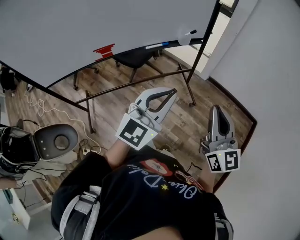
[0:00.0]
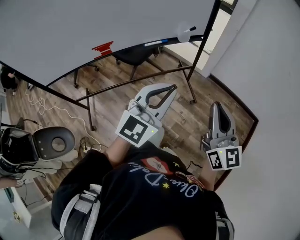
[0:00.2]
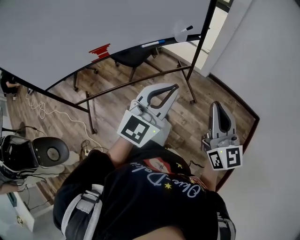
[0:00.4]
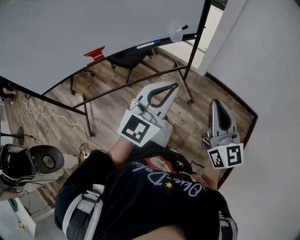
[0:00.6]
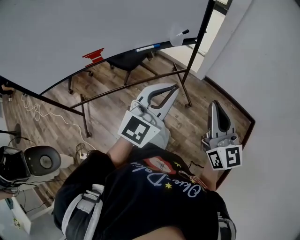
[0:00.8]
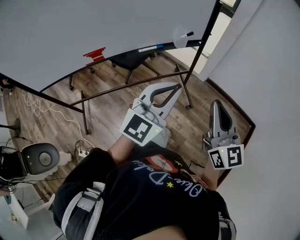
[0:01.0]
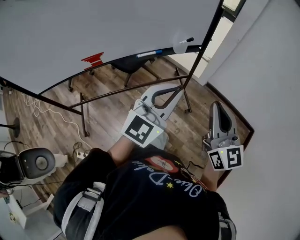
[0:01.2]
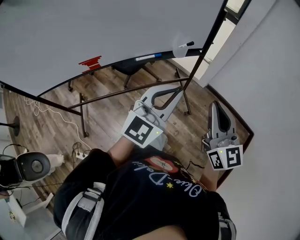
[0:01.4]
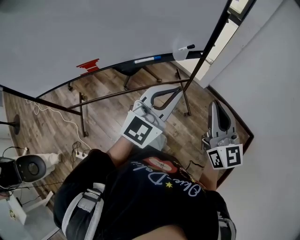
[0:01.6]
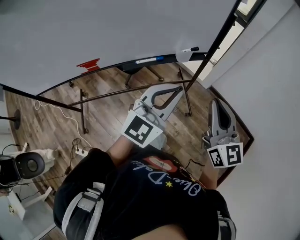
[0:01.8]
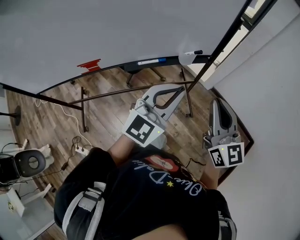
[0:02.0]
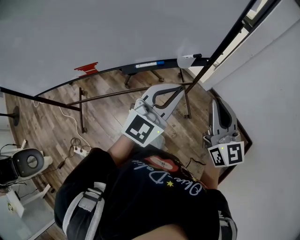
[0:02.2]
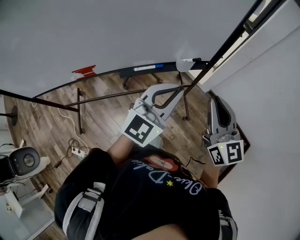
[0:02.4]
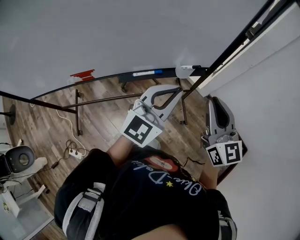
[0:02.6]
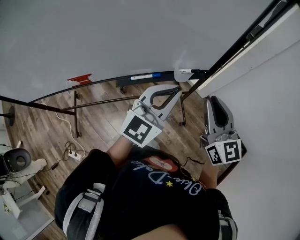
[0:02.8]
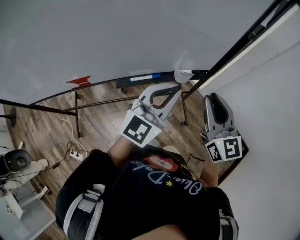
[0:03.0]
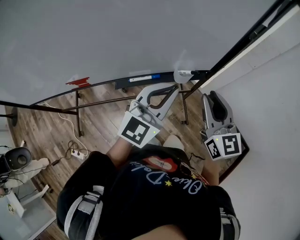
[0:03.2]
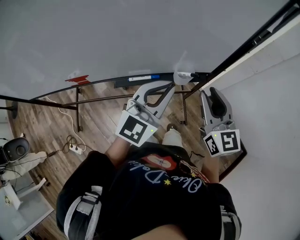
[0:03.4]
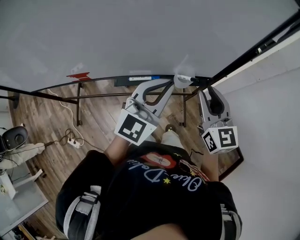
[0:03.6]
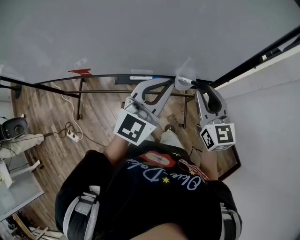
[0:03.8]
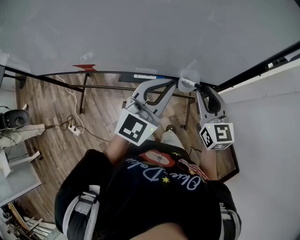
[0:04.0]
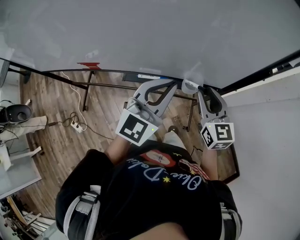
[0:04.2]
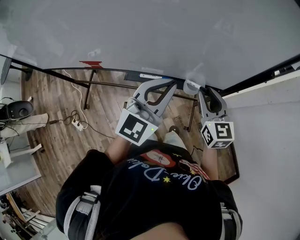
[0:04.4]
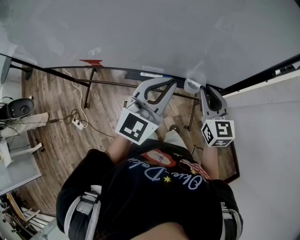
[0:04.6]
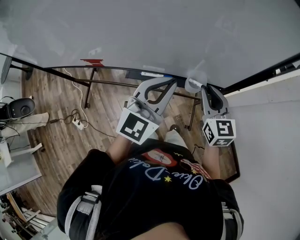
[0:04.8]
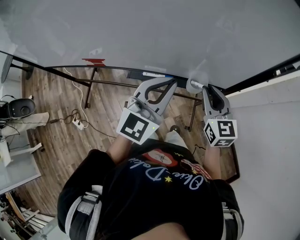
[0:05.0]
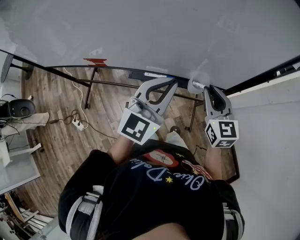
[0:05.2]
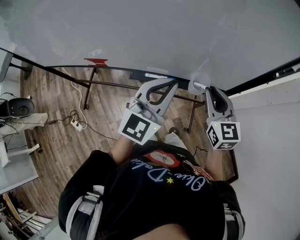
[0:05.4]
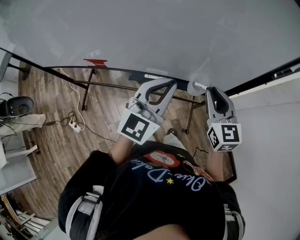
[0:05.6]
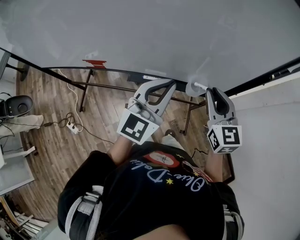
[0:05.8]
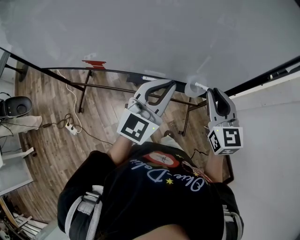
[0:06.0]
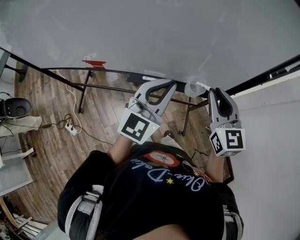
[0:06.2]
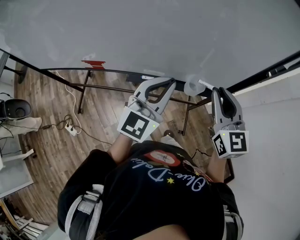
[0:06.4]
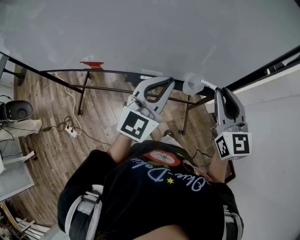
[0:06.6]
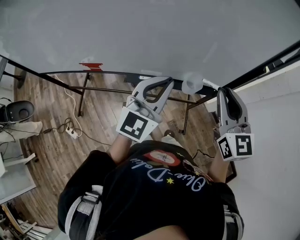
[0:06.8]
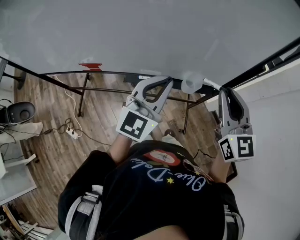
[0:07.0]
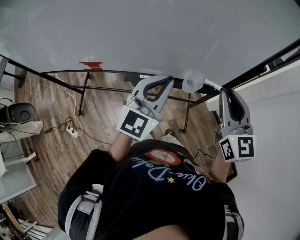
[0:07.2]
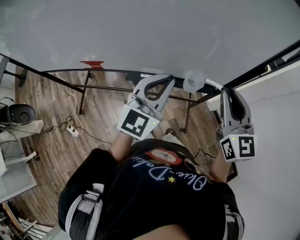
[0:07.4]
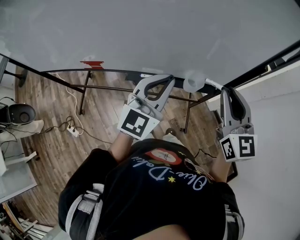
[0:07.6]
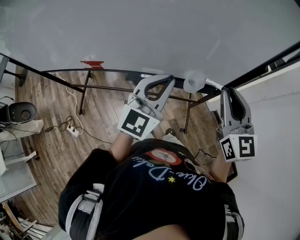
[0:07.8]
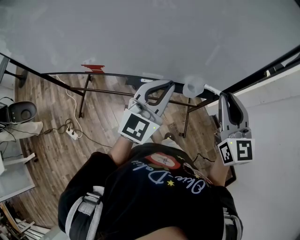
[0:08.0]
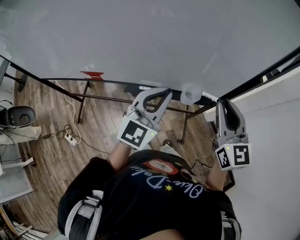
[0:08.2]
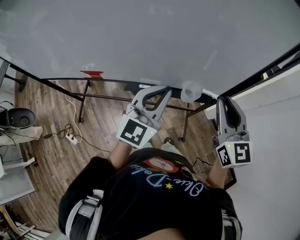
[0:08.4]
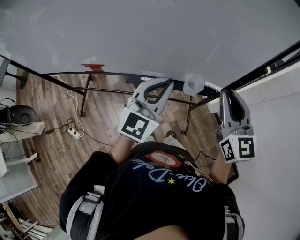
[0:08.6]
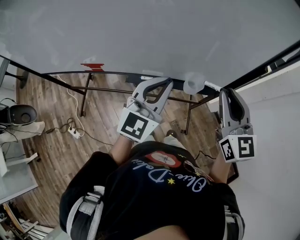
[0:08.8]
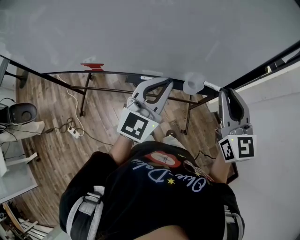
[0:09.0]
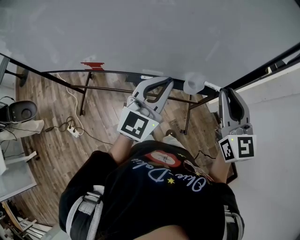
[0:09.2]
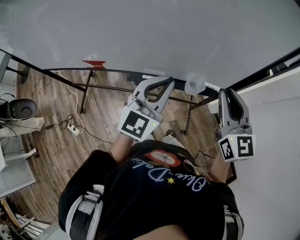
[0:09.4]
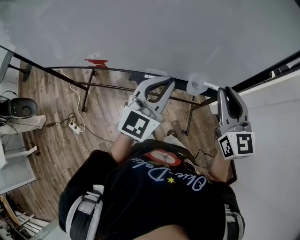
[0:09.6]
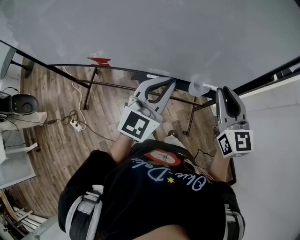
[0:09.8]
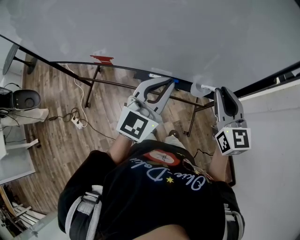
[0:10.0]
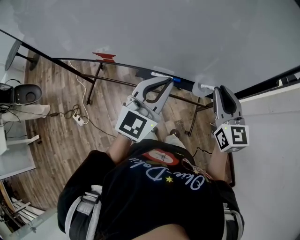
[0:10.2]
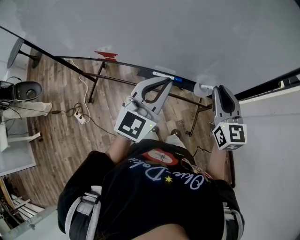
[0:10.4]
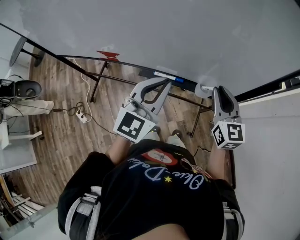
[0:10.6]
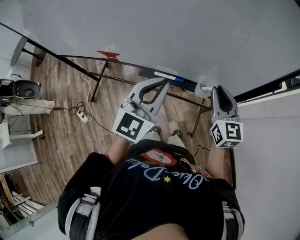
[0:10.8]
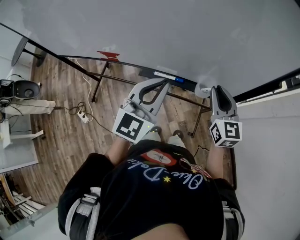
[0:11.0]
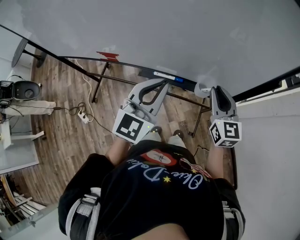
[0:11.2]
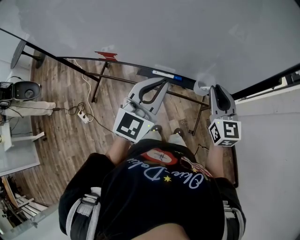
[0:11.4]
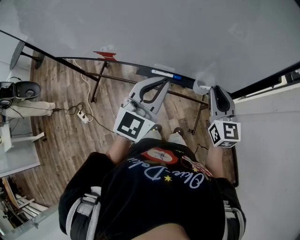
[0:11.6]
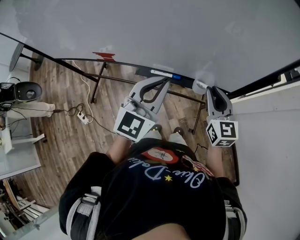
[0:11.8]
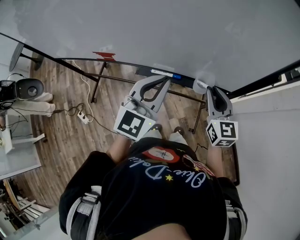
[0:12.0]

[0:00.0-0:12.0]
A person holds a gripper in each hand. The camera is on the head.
0:00.0 to 0:01.6: Both grippers move forward, about 20 cm.
0:01.6 to 0:03.0: The grippers both shift forward by roughly 15 cm.
0:03.0 to 0:04.4: The right gripper goes some 15 cm forward and downward, and rotates approximately 20 degrees. The left gripper travels forward by approximately 5 cm, and turns by some 20 degrees.
0:04.4 to 0:06.0: The right gripper heads upward, covering about 5 cm.
0:06.0 to 0:07.6: The right gripper is displaced upward by approximately 5 cm.
0:07.6 to 0:09.0: Both grippers stay put.
0:09.0 to 0:10.4: The right gripper travels downward by about 10 cm.
0:10.4 to 0:12.0: The right gripper travels downward by some 5 cm.

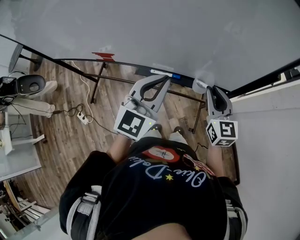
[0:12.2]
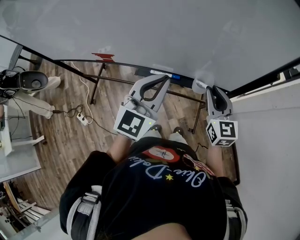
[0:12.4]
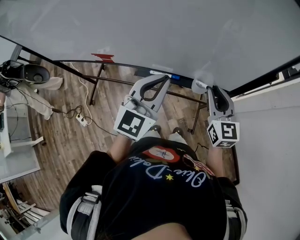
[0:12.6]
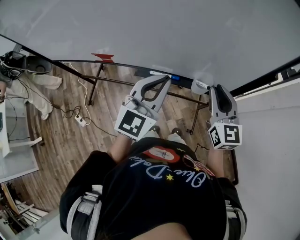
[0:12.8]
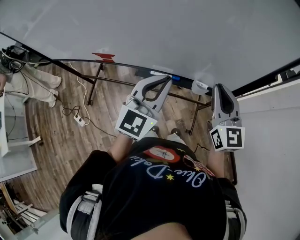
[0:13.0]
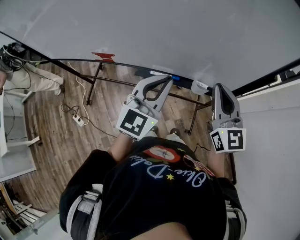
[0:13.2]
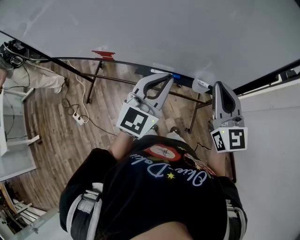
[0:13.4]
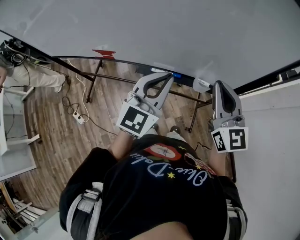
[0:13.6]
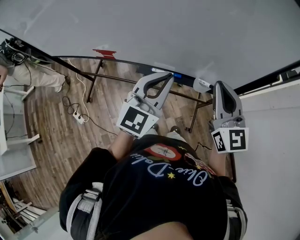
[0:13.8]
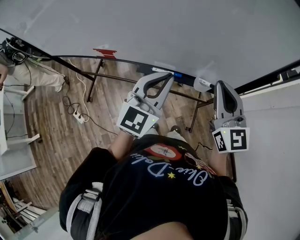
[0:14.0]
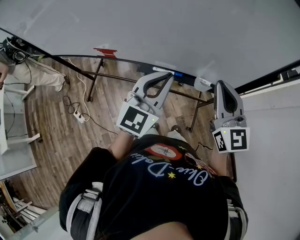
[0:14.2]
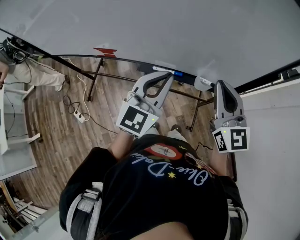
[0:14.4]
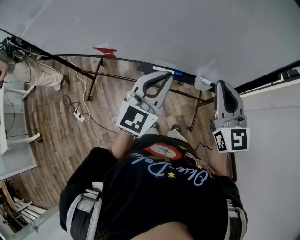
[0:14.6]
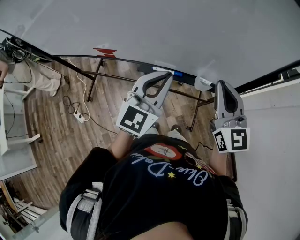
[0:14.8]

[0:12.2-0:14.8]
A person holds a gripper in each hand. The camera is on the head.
0:12.2 to 0:13.4: The right gripper moves upward, about 10 cm.
0:13.4 to 0:14.8: The two grippers keep their place.

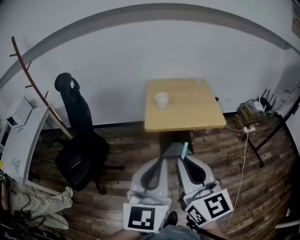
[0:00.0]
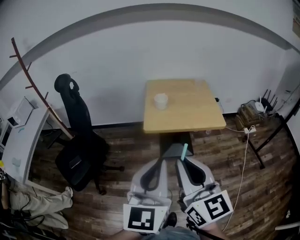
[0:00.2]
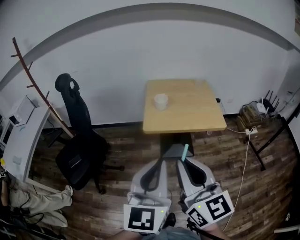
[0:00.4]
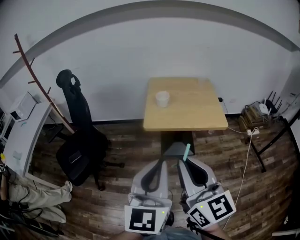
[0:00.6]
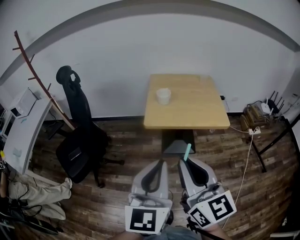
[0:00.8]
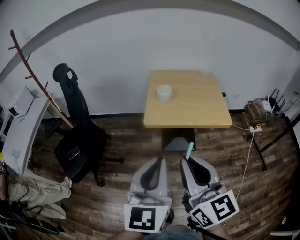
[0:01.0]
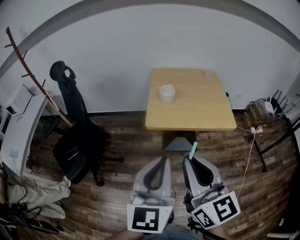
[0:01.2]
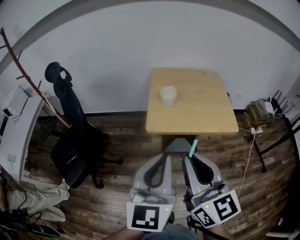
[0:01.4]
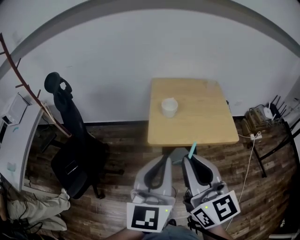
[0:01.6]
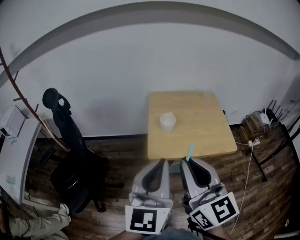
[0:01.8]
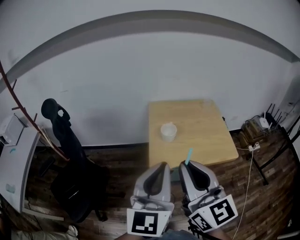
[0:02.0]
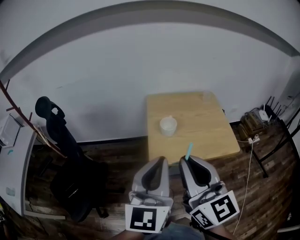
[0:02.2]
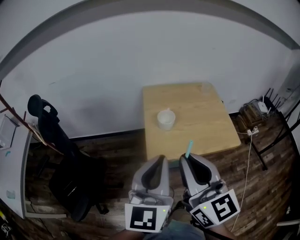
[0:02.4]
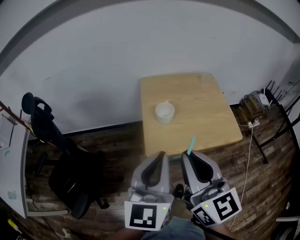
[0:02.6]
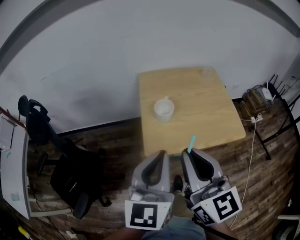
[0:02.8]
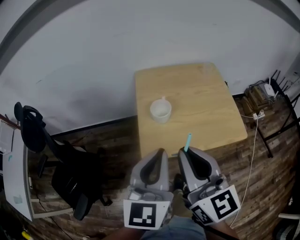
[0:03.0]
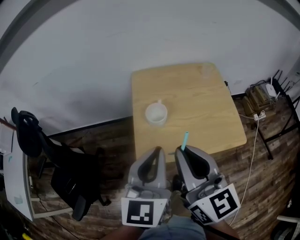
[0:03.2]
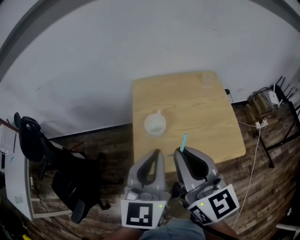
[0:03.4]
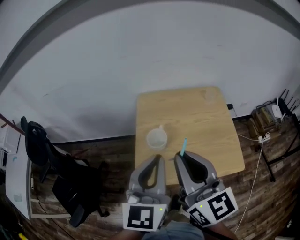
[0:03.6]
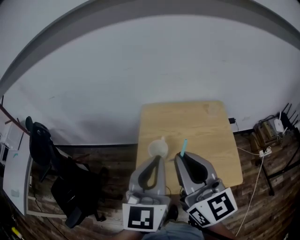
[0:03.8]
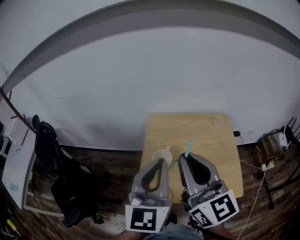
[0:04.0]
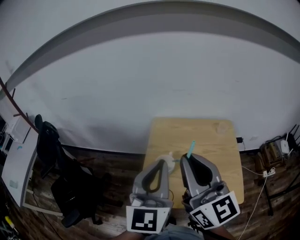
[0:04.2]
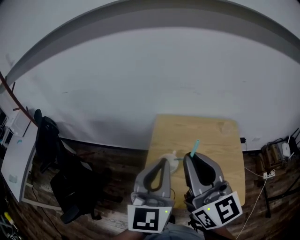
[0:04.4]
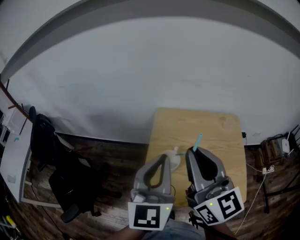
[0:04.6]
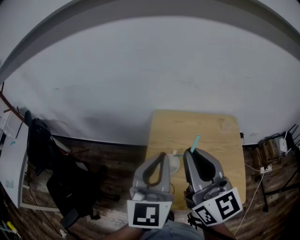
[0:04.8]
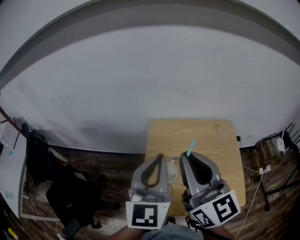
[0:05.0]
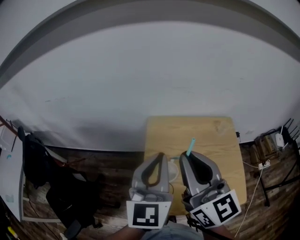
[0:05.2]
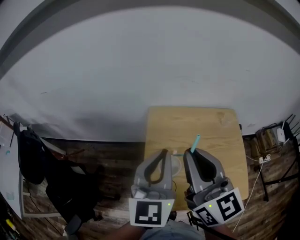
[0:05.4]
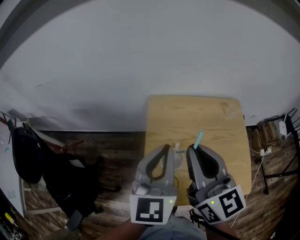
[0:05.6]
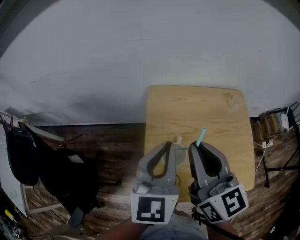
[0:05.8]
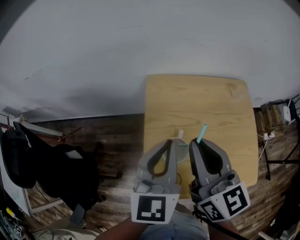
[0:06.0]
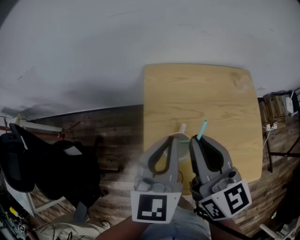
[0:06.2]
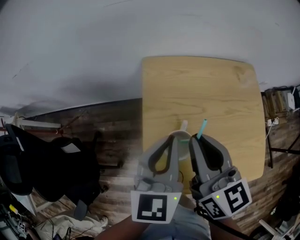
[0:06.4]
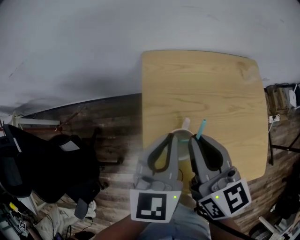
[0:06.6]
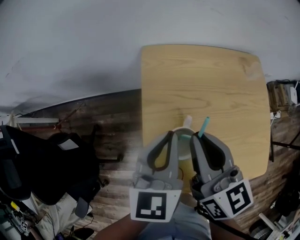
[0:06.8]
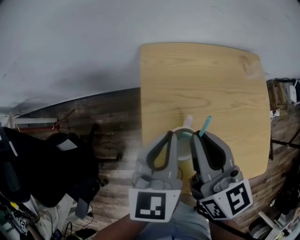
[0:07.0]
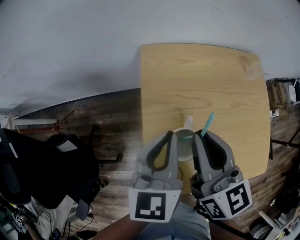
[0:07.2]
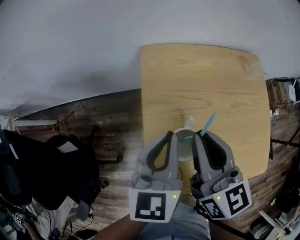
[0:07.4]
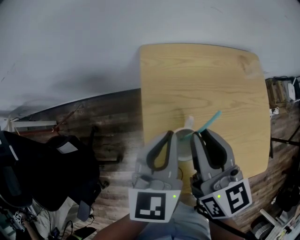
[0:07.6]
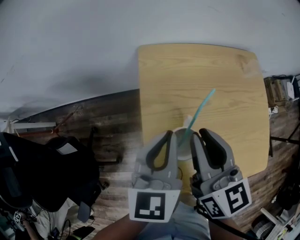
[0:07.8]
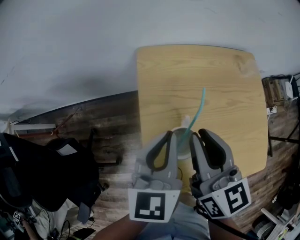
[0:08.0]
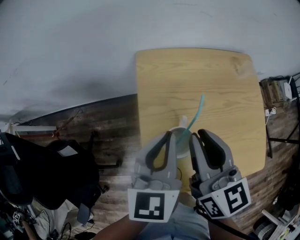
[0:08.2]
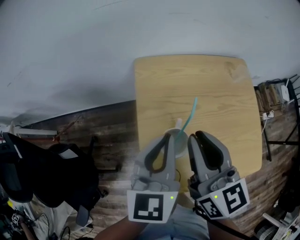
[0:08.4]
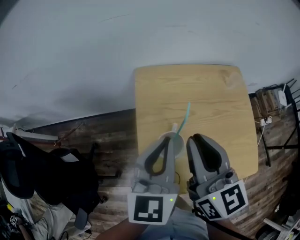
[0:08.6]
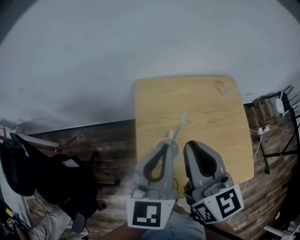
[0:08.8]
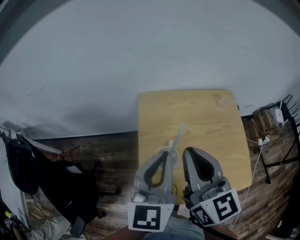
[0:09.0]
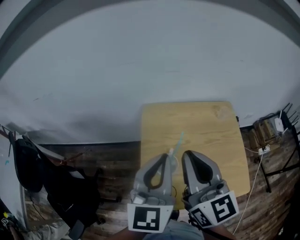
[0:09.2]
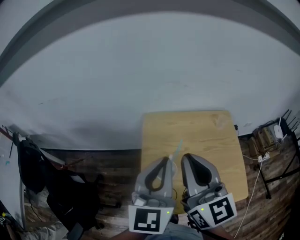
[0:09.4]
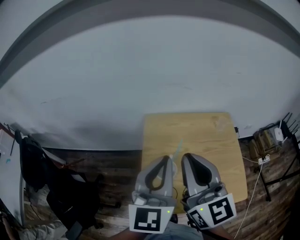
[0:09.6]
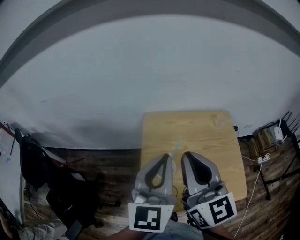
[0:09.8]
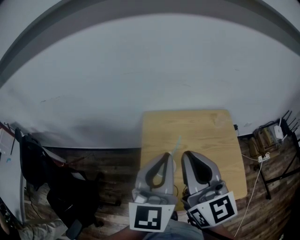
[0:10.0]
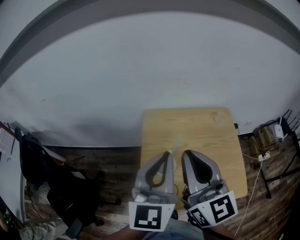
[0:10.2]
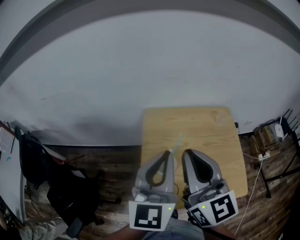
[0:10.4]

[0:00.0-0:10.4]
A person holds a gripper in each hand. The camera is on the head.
0:00.0 to 0:01.4: Both grippers move forward, some 15 cm.
0:01.4 to 0:03.0: The grippers both shift forward by about 20 cm.
0:03.0 to 0:04.4: Both grippers travel together forward and upward, approximately 15 cm.
0:04.4 to 0:06.0: Both grippers move downward and forward, about 15 cm. The right gripper turns by about 20 degrees.
0:06.0 to 0:07.4: Both grippers travel together downward, roughly 10 cm.
0:07.4 to 0:09.0: Both grippers travel together upward, about 15 cm.
0:09.0 to 0:10.4: Both grippers travel together upward, some 5 cm.
